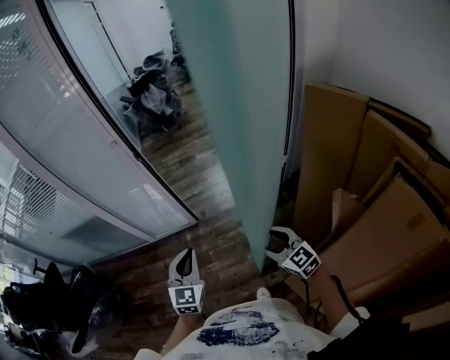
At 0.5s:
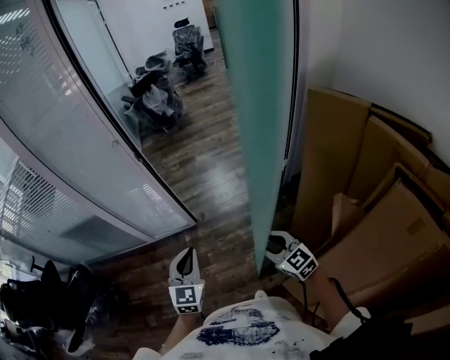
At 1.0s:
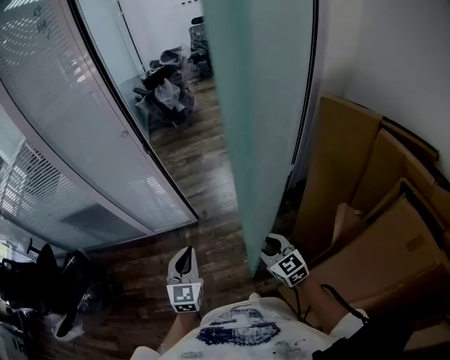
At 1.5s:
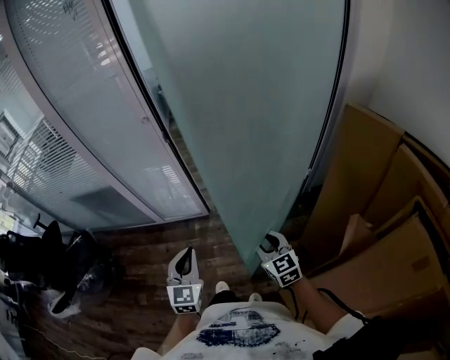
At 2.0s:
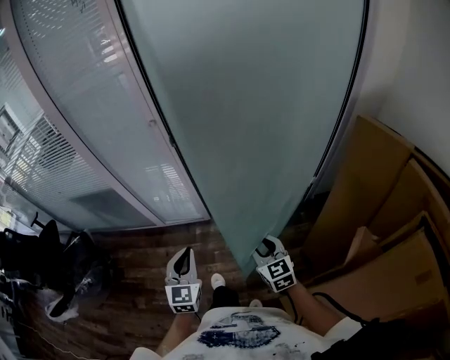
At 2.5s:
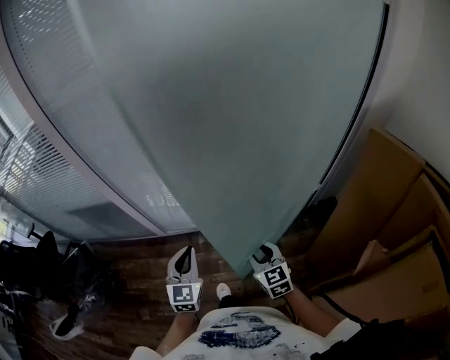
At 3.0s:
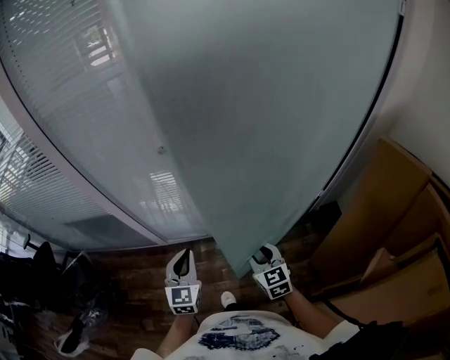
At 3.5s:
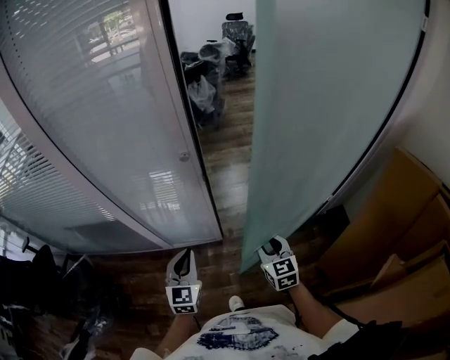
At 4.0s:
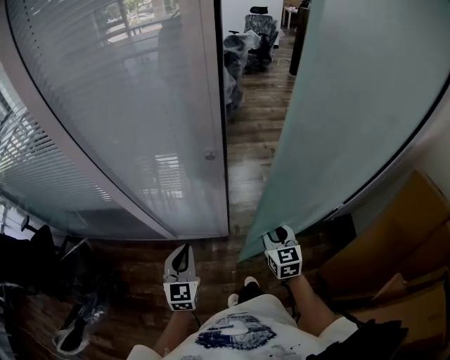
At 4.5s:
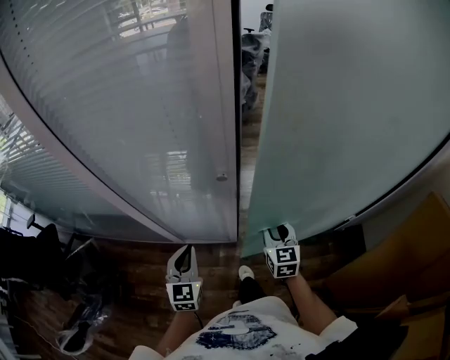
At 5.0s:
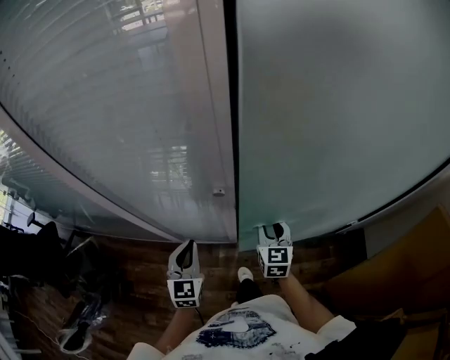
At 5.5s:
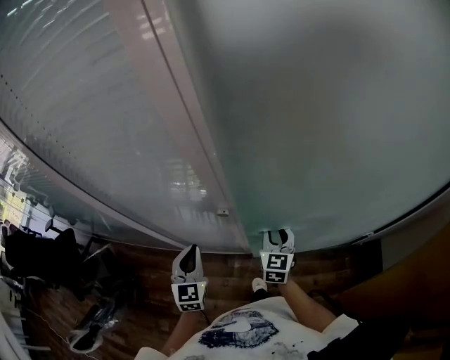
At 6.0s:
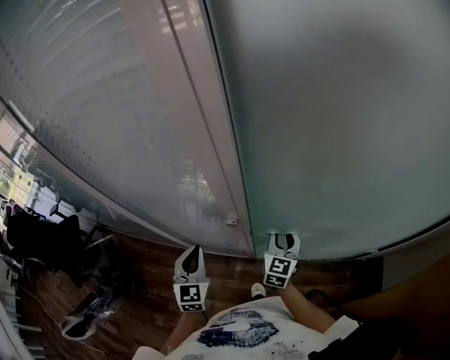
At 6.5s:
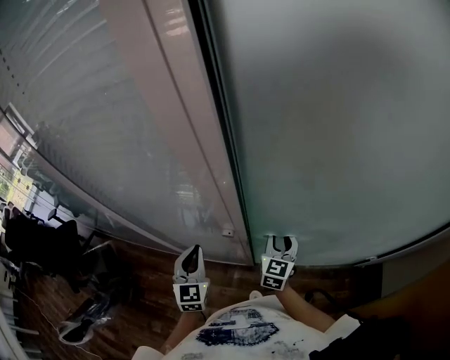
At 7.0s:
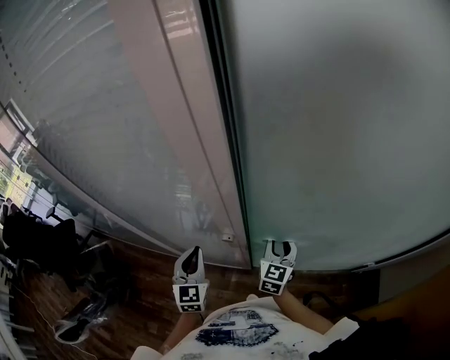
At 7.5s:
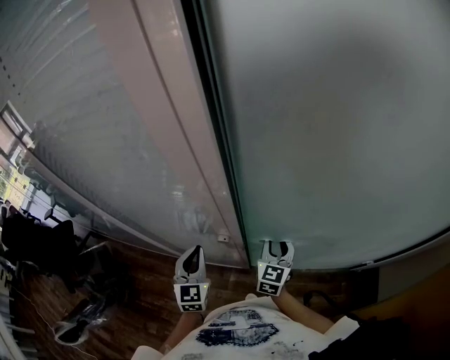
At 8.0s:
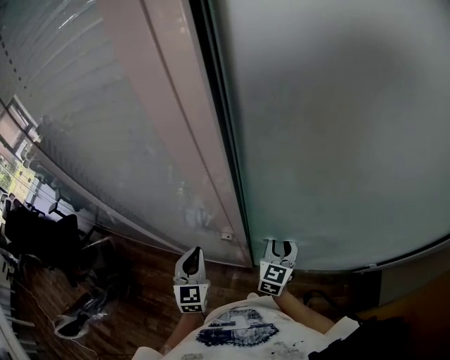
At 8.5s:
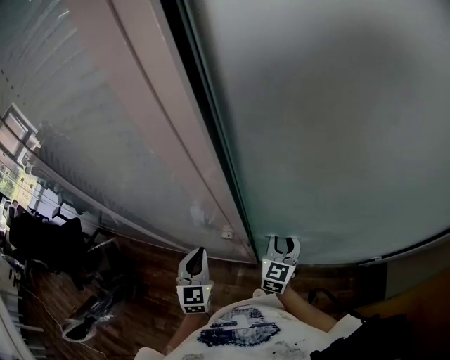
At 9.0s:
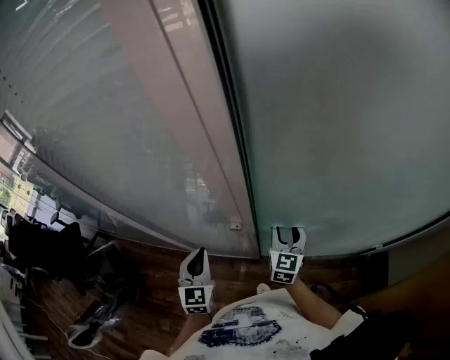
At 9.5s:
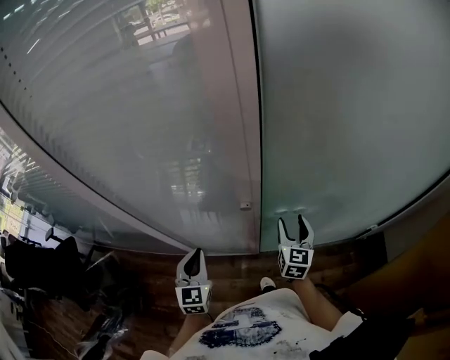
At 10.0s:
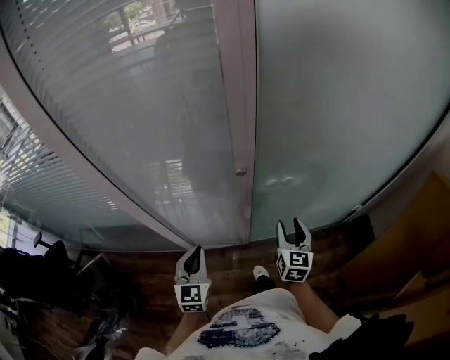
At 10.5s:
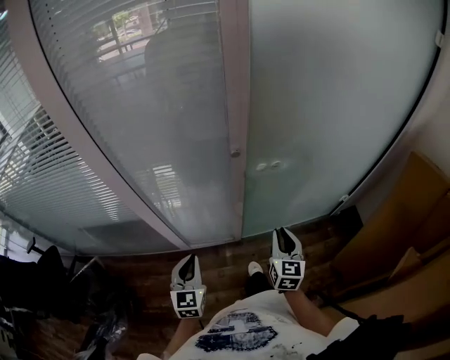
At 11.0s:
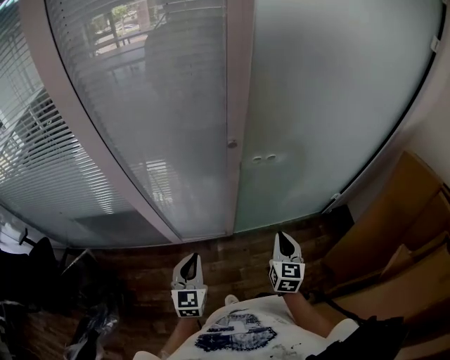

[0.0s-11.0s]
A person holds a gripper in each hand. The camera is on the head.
0.0s to 2.0s: The left gripper goes approximately 5 cm to the left, while the right gripper travels forward and to the left by approximately 10 cm, and closes.
2.0s to 3.5s: The two grippers go about 25 cm forward and to the left.
3.5s to 5.5s: The two grippers go approximately 20 cm forward.
5.5s to 7.5s: The right gripper shifts by some 5 cm, while the left gripper is displaced forward by roughly 5 cm.
7.5s to 9.0s: The grippers stay close to where they were, moving slightly.
9.0s to 11.0s: Both grippers move backward, approximately 30 cm. The right gripper closes its fingers.

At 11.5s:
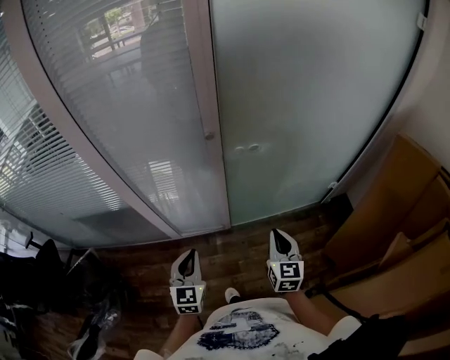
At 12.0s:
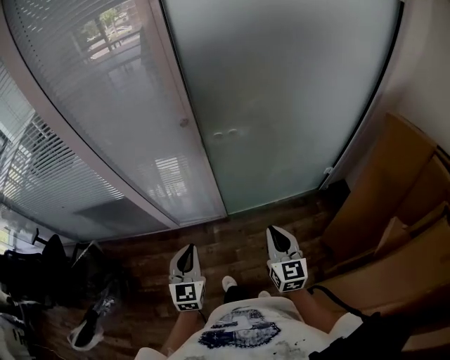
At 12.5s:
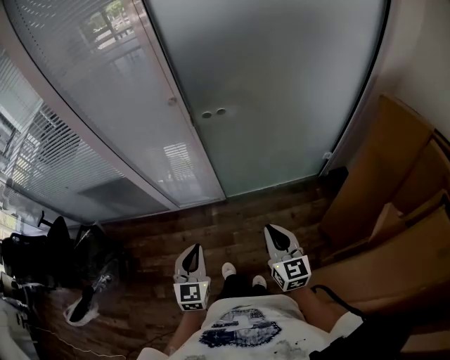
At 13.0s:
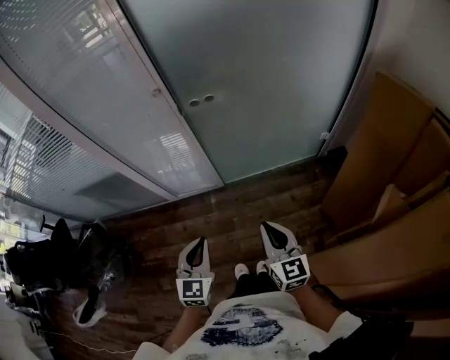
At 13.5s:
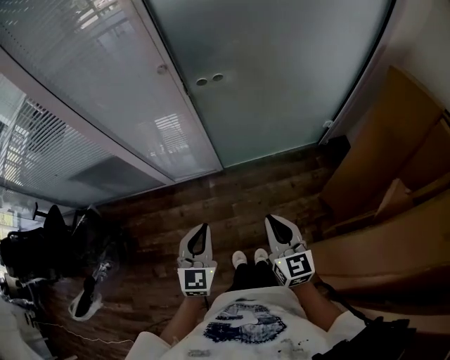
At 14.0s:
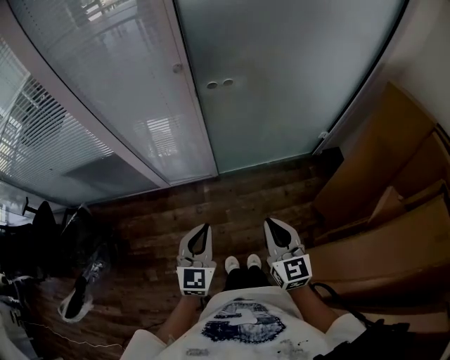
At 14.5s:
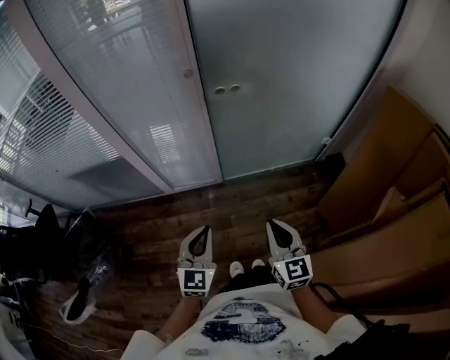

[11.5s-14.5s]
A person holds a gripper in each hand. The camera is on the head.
11.5s to 13.0s: The right gripper moves backward and to the right, roughly 20 cm; the left gripper moves to the right and backward, roughly 20 cm.
13.0s to 14.5s: The grippers both shift to the left by some 5 cm.

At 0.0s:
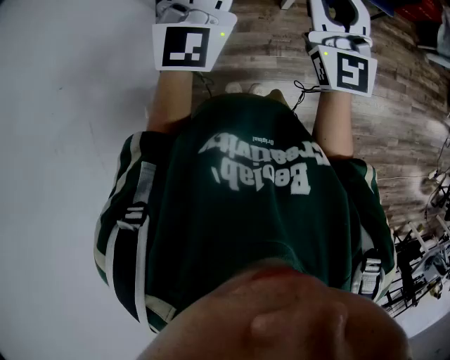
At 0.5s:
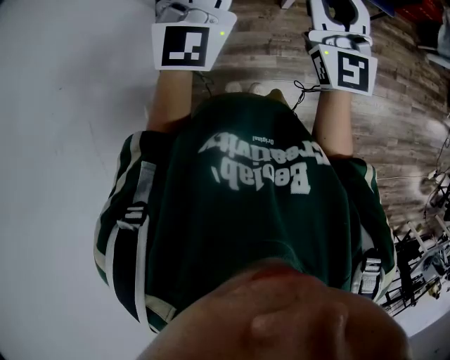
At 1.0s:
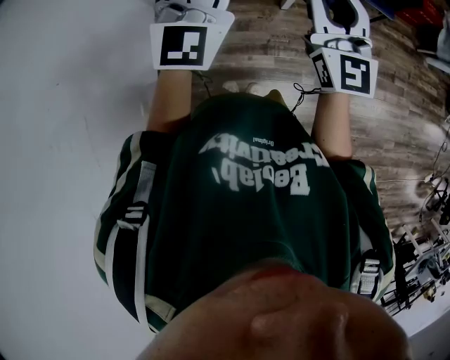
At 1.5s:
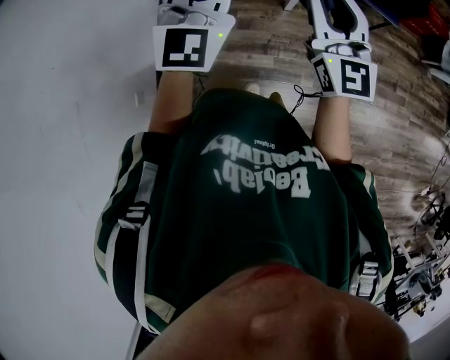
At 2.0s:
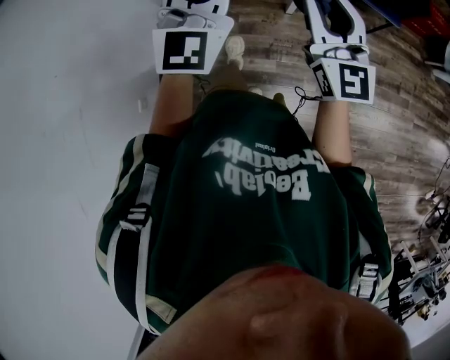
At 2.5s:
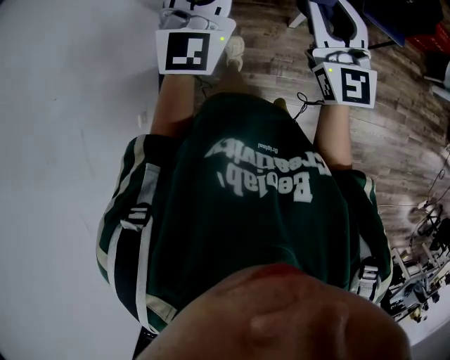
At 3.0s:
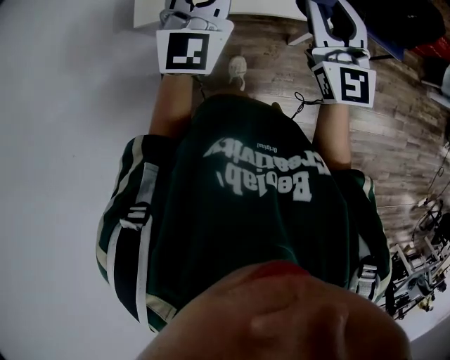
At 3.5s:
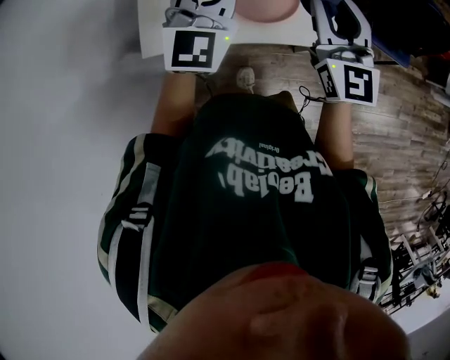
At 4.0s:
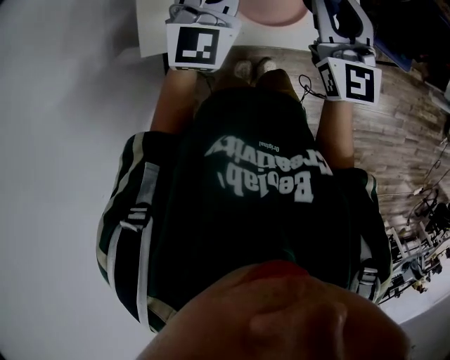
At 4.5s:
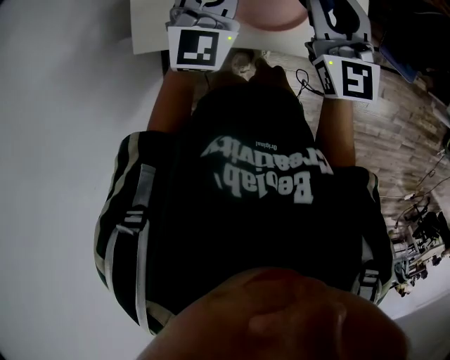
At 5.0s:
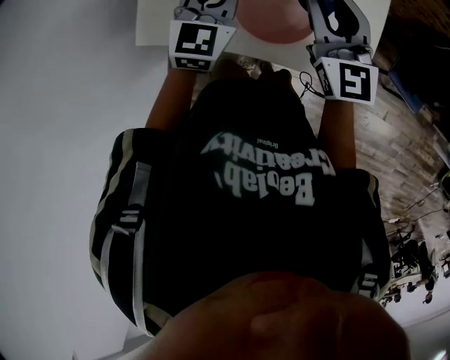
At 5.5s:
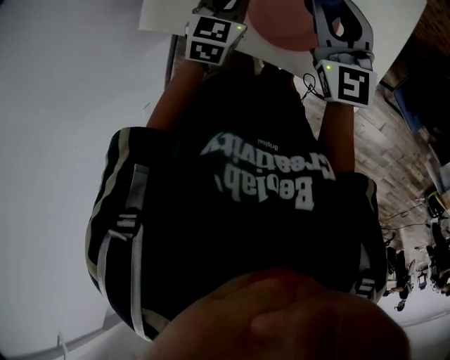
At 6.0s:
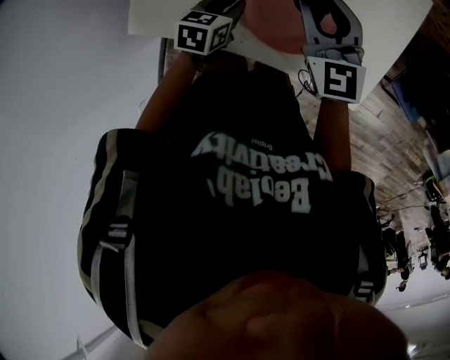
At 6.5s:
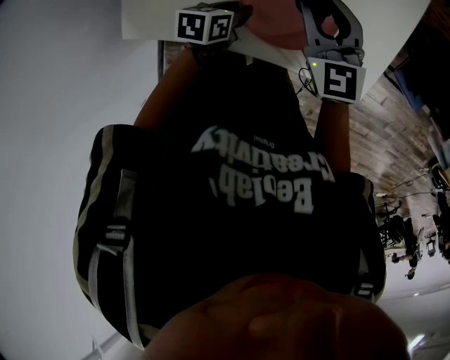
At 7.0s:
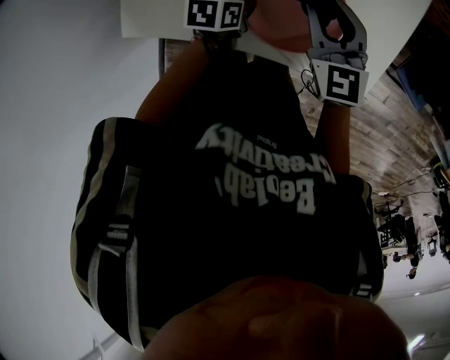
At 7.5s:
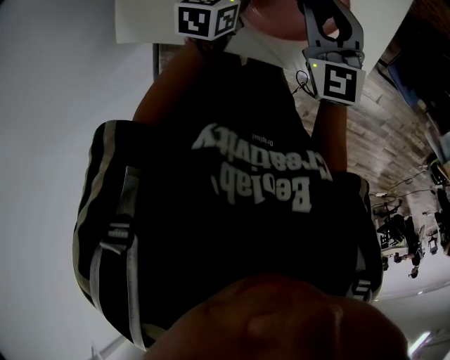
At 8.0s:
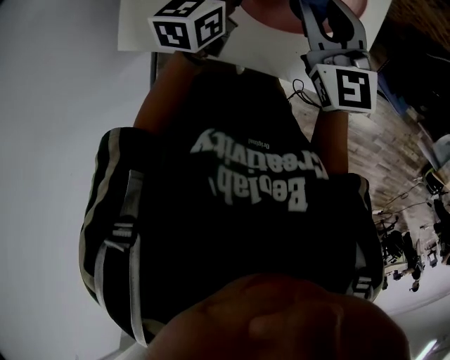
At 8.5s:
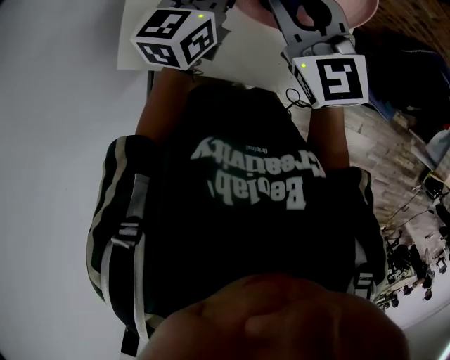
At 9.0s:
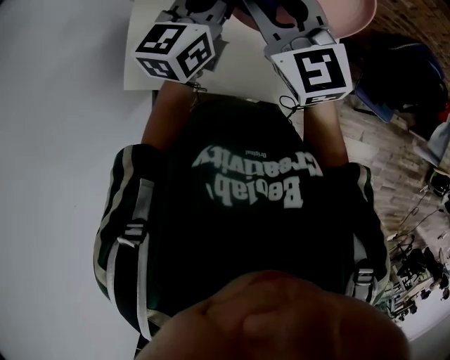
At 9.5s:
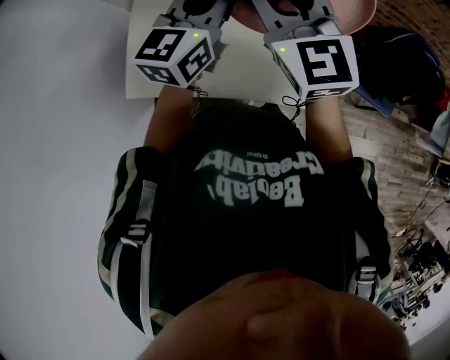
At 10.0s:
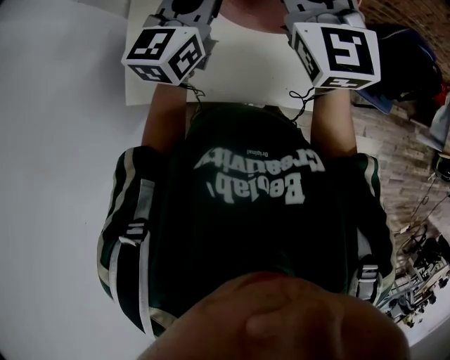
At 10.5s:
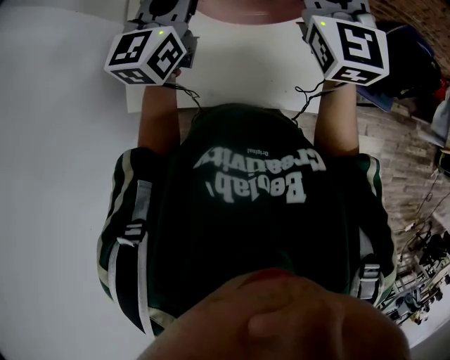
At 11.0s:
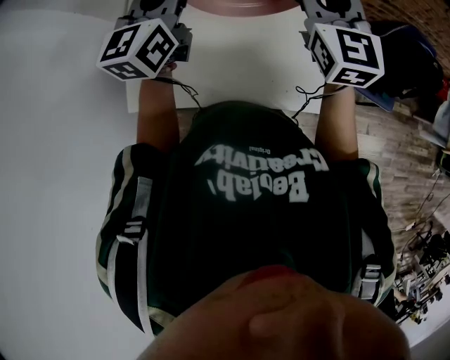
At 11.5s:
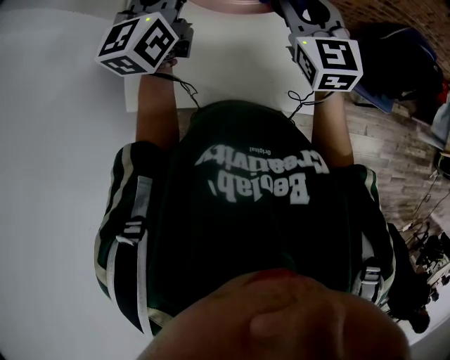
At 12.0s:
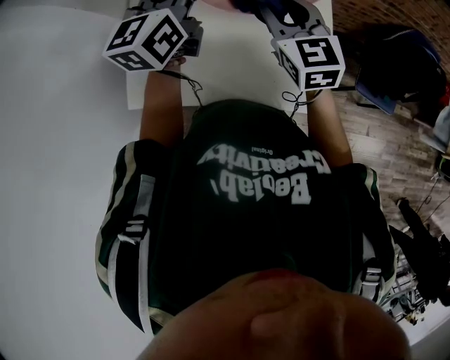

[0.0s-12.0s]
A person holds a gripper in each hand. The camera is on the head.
0.0s to 2.0s: The right gripper ends up approximately 5 cm from where it was.
2.0s to 4.0s: Both grippers are carried forward, roughly 50 cm.
4.0s to 6.0s: The left gripper moves downward, some 35 cm, and tips its fingers downward by roughly 50 degrees, while the right gripper goes roughly 25 cm downward and forward, and turns by roughly 30 degrees.
6.0s to 8.0s: The left gripper shifts some 20 cm upward and forward, and changes its angle by roughly 20 degrees. Meanwhile the right gripper shifts approximately 10 cm upward and to the right.
8.0s to 10.0s: Both grippers move upward, approximately 20 cm. The right gripper rotates some 20 degrees, while the left gripper changes its angle by approximately 30 degrees.
10.0s to 12.0s: The right gripper shifts approximately 15 cm downward. Meanwhile the left gripper is displaced forward by roughly 5 cm.

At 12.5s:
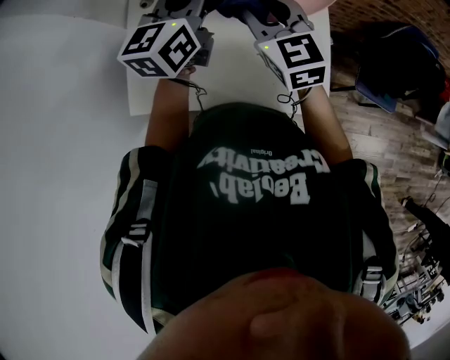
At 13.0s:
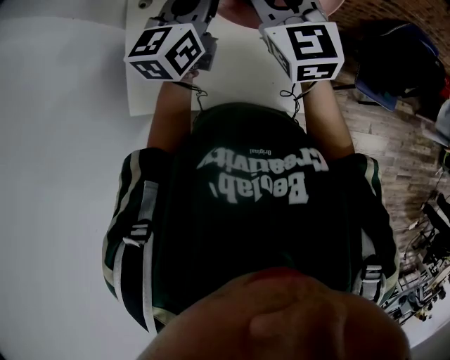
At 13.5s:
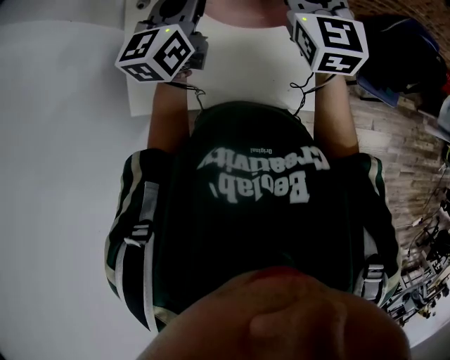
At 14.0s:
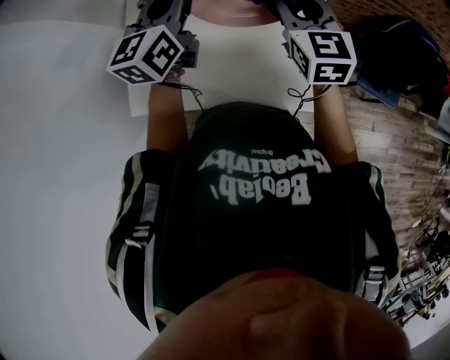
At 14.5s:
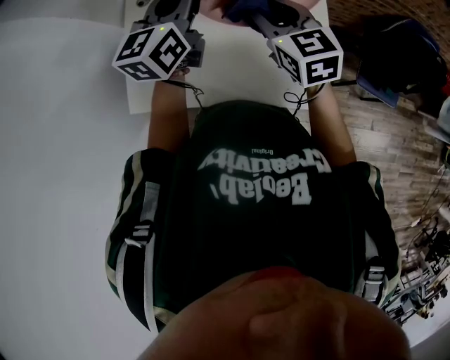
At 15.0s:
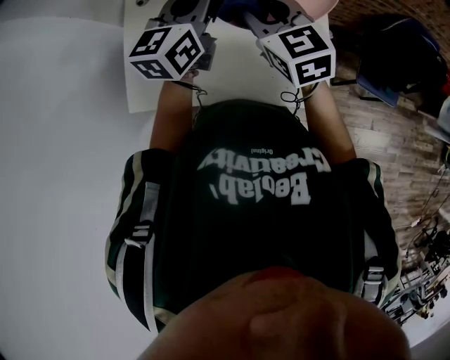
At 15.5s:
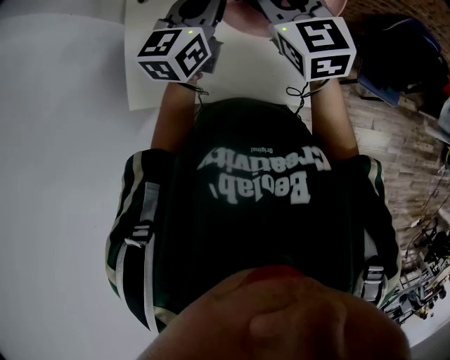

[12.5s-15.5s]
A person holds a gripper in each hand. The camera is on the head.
12.5s to 14.0s: The right gripper moves to the right, some 10 cm.
14.0s to 15.5s: The left gripper is displaced to the right by approximately 5 cm. The right gripper shifts by approximately 5 cm.
